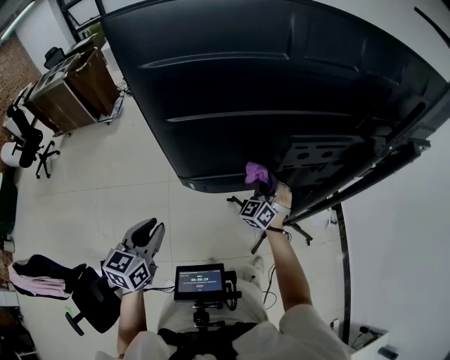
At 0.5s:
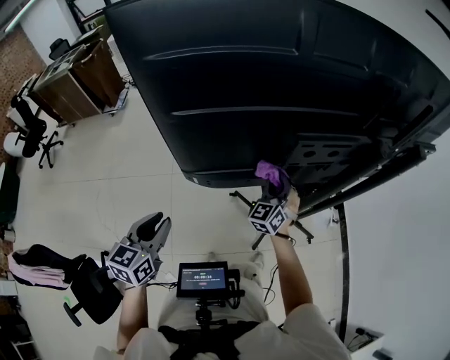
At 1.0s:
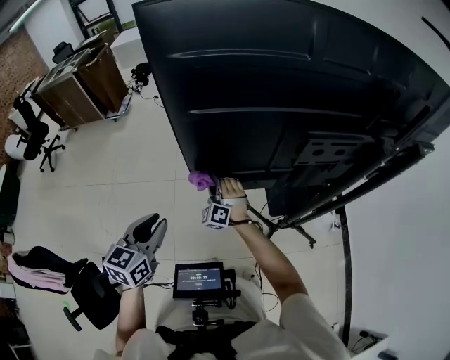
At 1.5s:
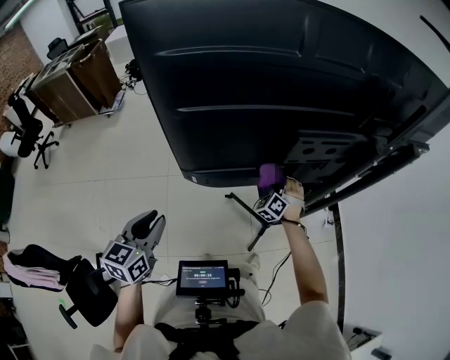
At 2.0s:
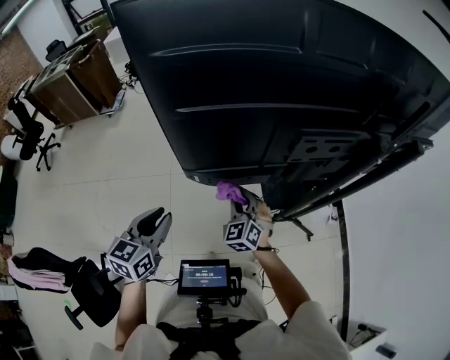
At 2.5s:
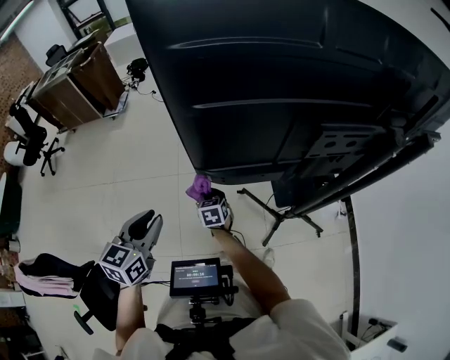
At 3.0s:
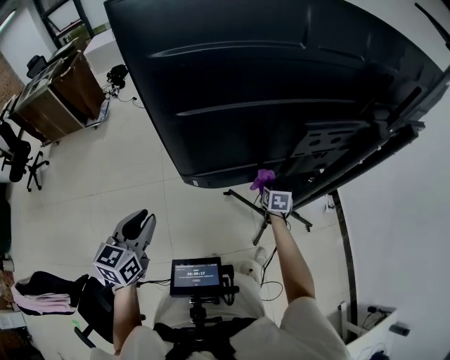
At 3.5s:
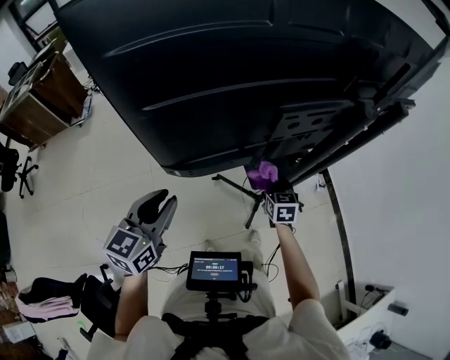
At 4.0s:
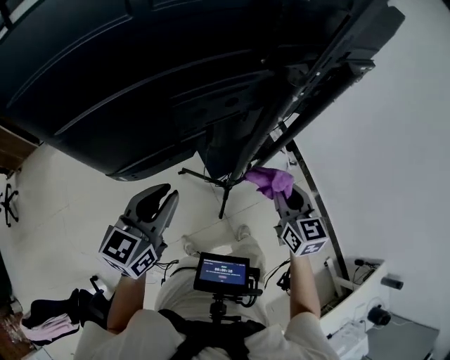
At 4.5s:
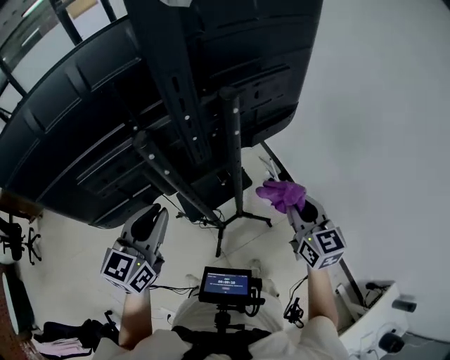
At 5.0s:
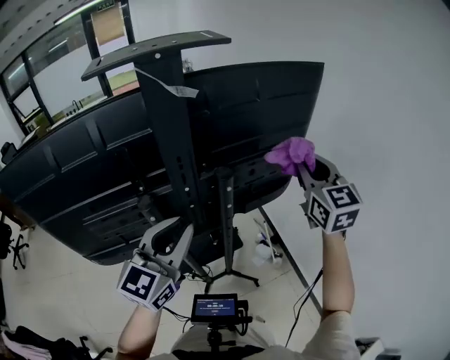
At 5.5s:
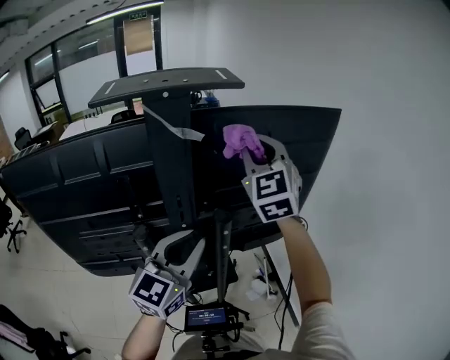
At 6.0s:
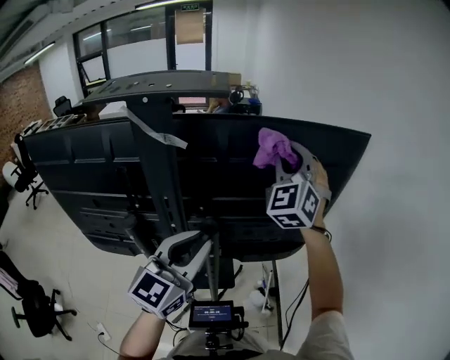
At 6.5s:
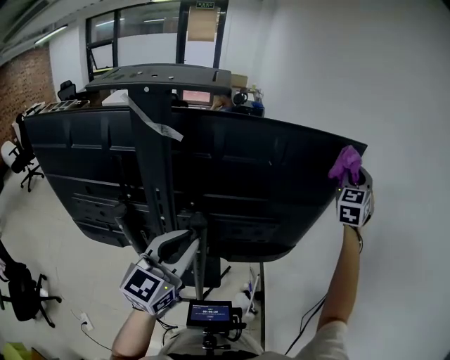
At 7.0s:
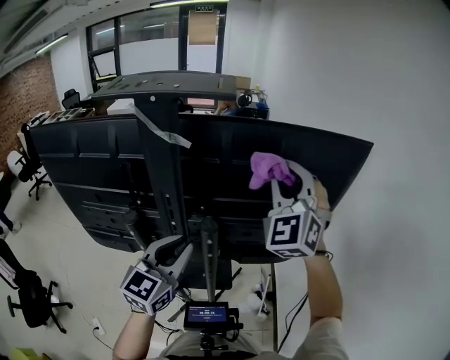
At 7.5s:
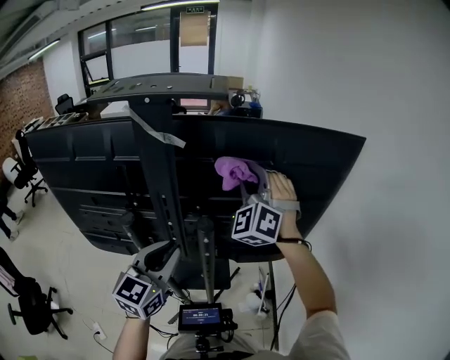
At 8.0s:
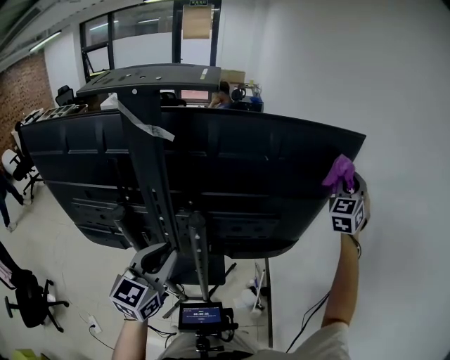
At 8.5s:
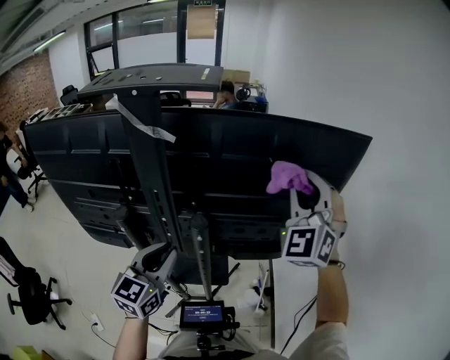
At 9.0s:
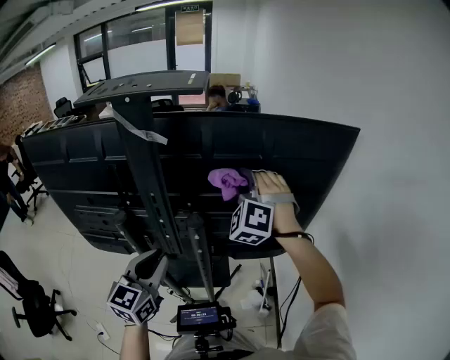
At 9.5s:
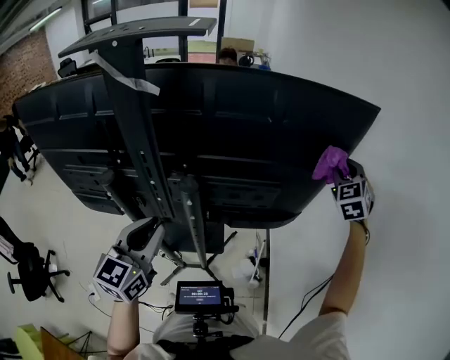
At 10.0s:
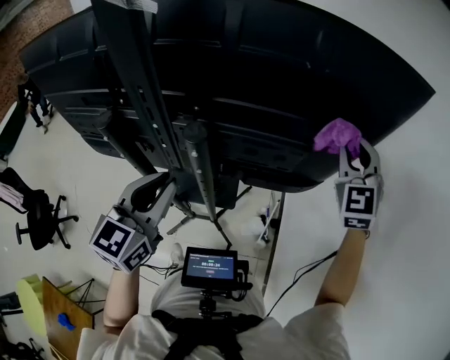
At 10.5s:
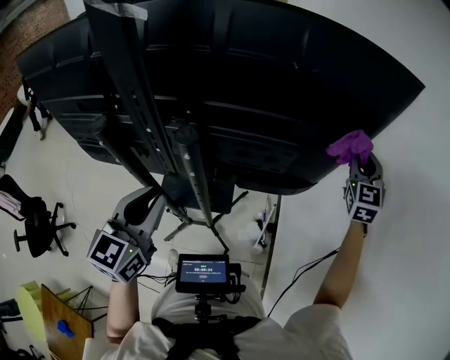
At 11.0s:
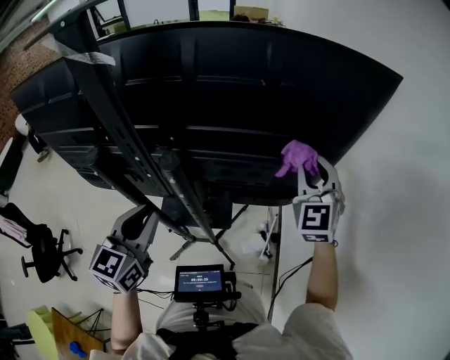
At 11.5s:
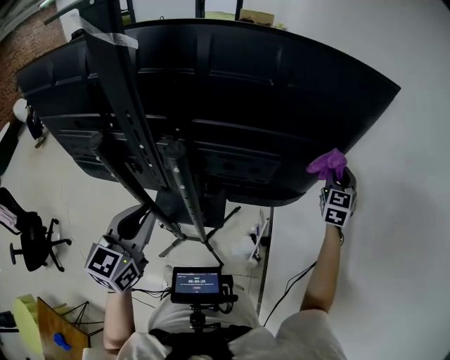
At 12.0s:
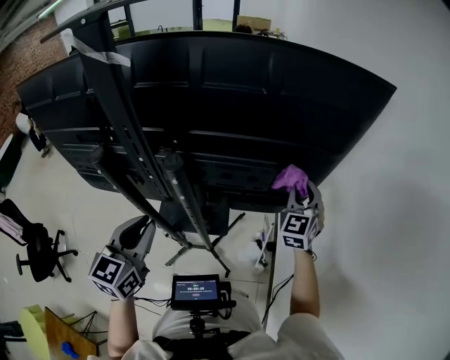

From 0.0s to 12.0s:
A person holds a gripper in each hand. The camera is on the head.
From 0.0s to 2.0s: The right gripper moves left and right over roughly 30 cm, changing direction 2 times, and turns by some 20 degrees.
From 2.0s to 4.0s: The right gripper goes downward and returns, some 15 cm each way, and rotates around the line of its fingers by some 40 degrees, clockwise from behind; the left gripper changes place by roughly 30 cm, and turns by approximately 30 degrees.
From 4.0s to 6.0s: Both grippers are carried to the right and forward, some 70 cm. The left gripper rotates some 30 degrees. Meanwhile the right gripper shifts approximately 40 cm upward, and twists some 60 degrees counterclockwise, seen from behind.
From 6.0s to 8.0s: The left gripper travels downward by approximately 10 cm. The right gripper moves left and right over roughly 35 cm, changing direction 2 times.
From 8.0s to 10.0s: The right gripper swings left and right, some 30 cm each way, with 2 reversals, and rotates about 30 degrees; the left gripper changes place by roughly 5 cm.
From 10.0s to 12.0s: The right gripper swings left and right, about 15 cm each way, with 3 reversals.

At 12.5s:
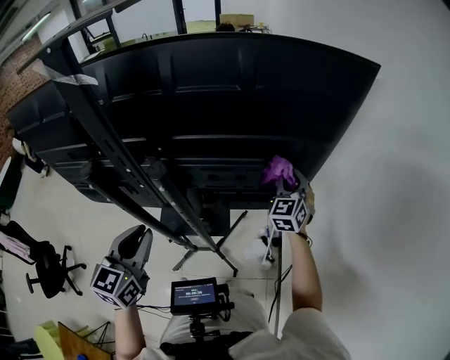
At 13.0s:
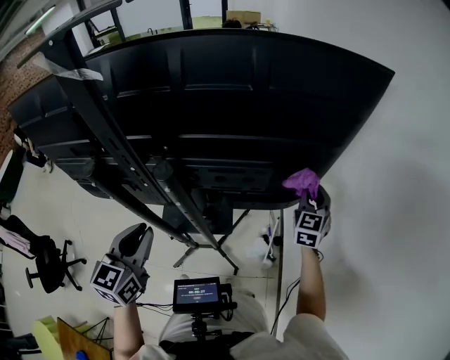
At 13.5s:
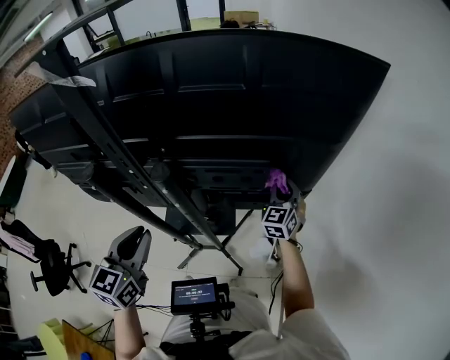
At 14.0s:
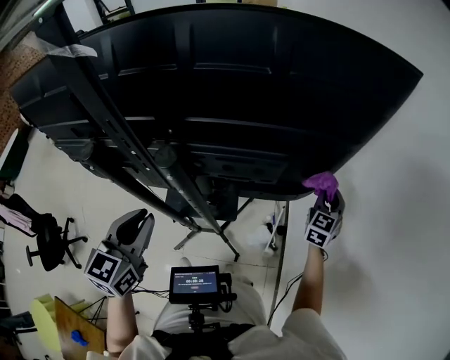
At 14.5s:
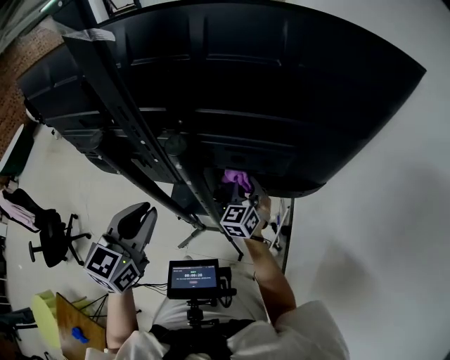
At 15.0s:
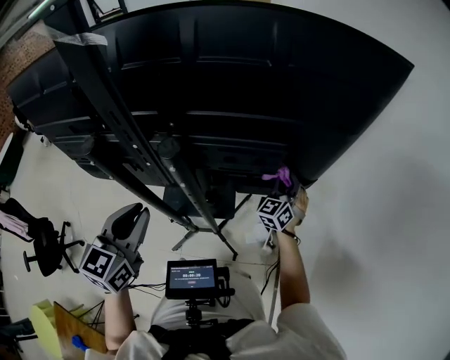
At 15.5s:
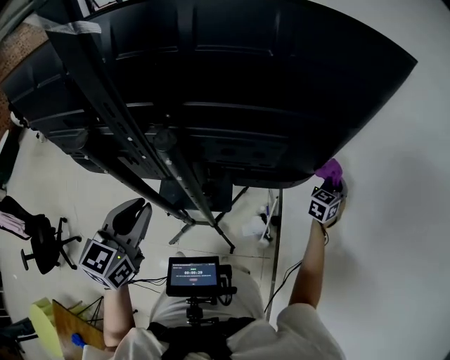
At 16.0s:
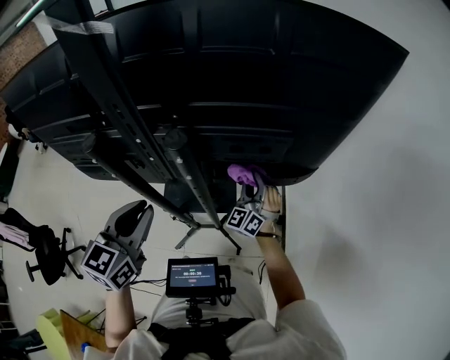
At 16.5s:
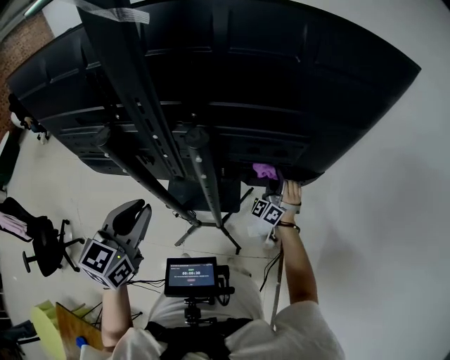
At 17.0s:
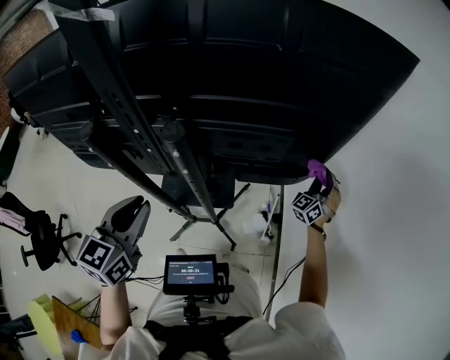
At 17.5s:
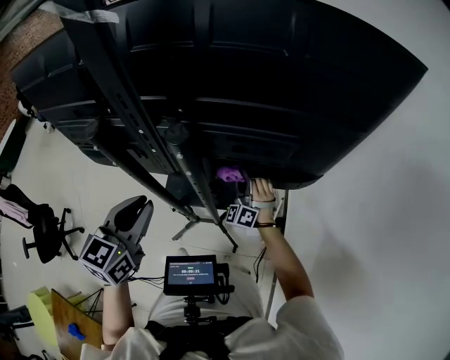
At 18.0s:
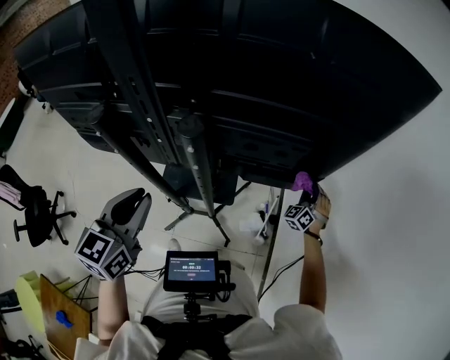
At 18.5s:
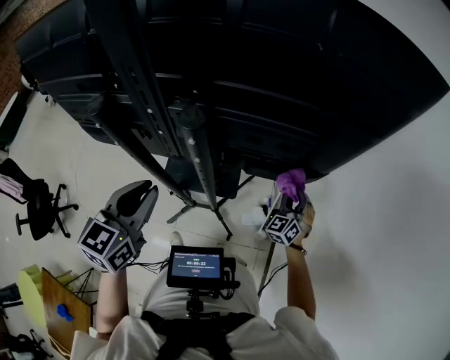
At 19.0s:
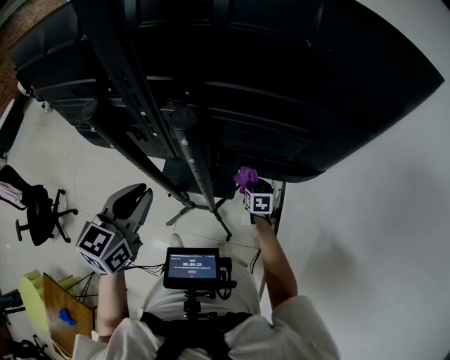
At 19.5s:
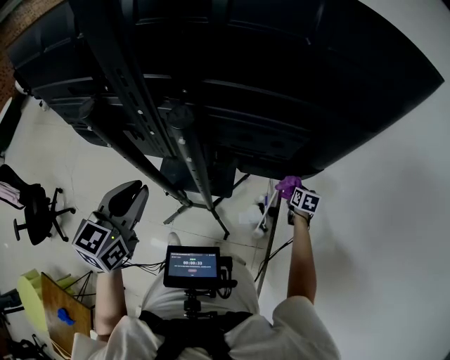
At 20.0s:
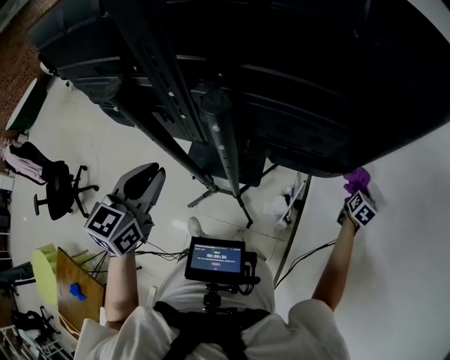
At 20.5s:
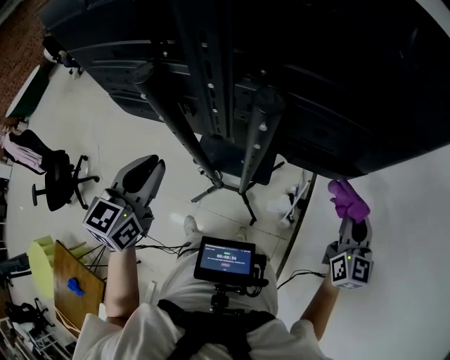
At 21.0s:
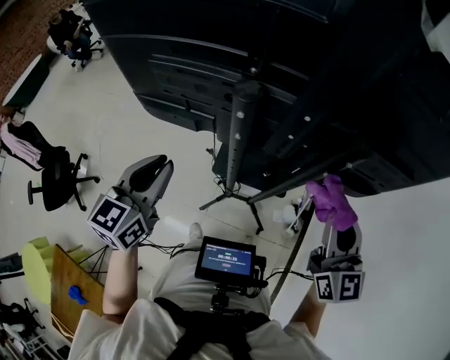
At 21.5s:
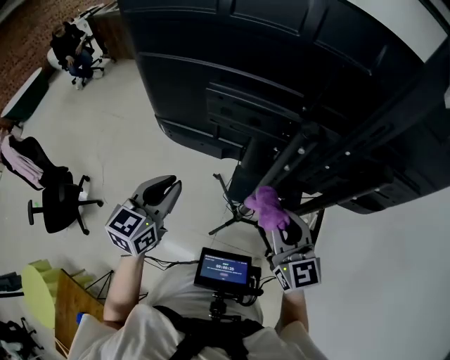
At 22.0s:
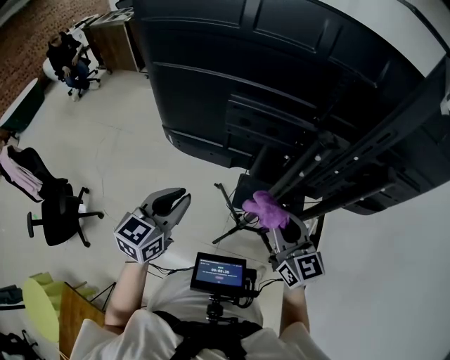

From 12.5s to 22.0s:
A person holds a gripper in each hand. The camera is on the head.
From 12.5s to 14.5s: The right gripper goes left and right, some 30 cm each way, reversing 3 times.
From 14.5s to 16.5s: The left gripper is displaced to the left by roughly 5 cm. The right gripper travels to the right and back again, approximately 35 cm each way, and rotates roughly 40 degrees.
From 16.5s to 18.0s: The right gripper swings left and right, some 30 cm each way, with 2 reversals.
From 18.0s to 20.0s: The right gripper heads to the right, covering some 10 cm, and rolls clockwise, seen from behind, by approximately 70 degrees.
From 20.0s to 22.0s: The pair of grippers is taken to the left, approximately 70 cm. The right gripper rotates some 60 degrees.

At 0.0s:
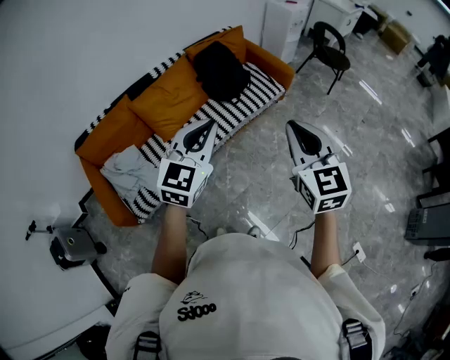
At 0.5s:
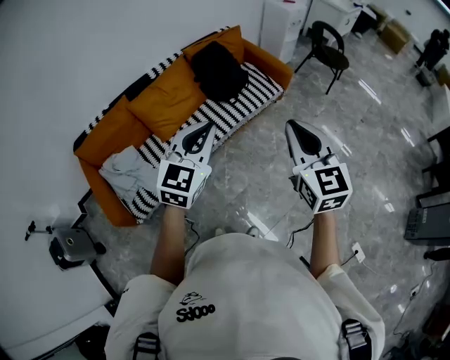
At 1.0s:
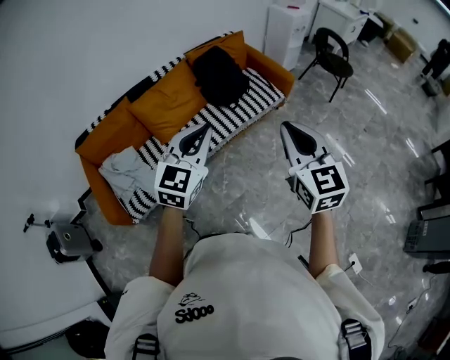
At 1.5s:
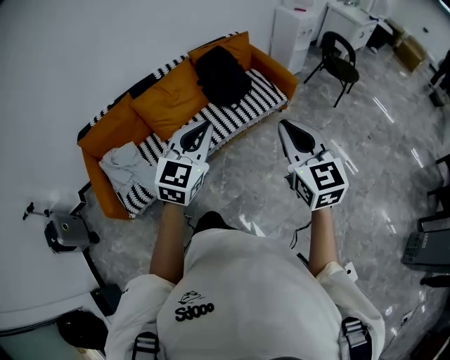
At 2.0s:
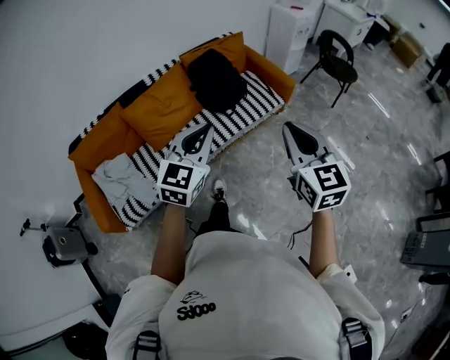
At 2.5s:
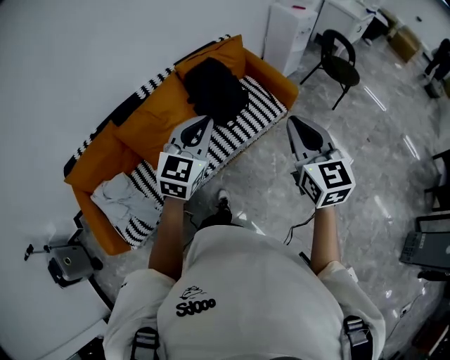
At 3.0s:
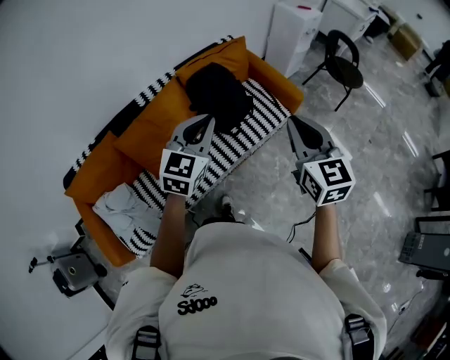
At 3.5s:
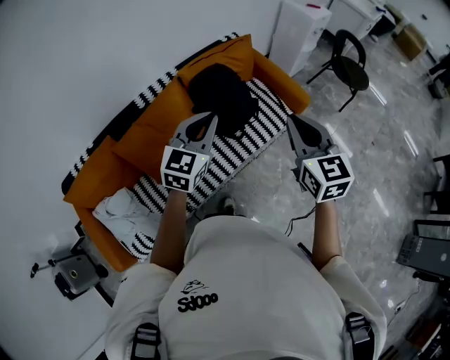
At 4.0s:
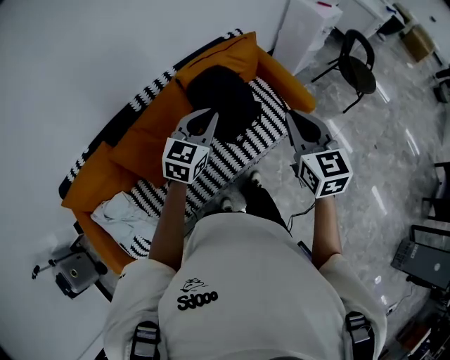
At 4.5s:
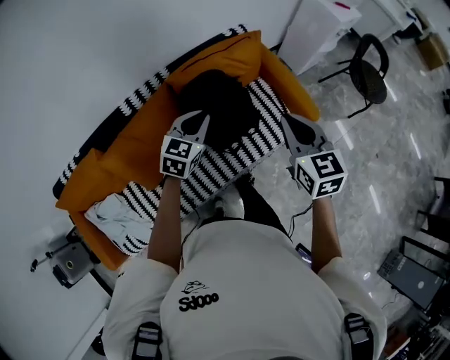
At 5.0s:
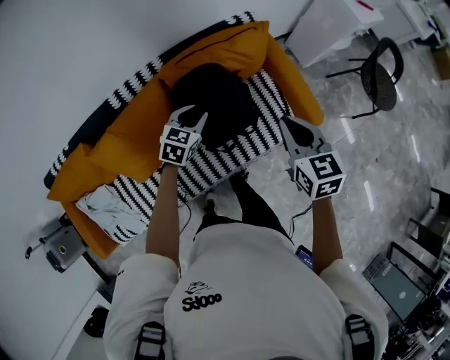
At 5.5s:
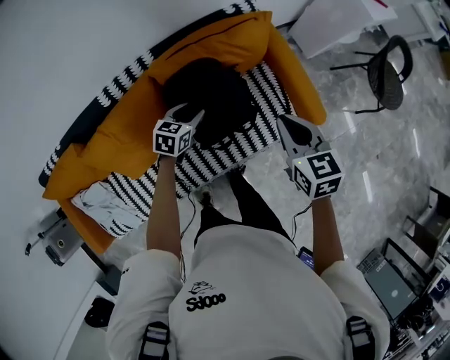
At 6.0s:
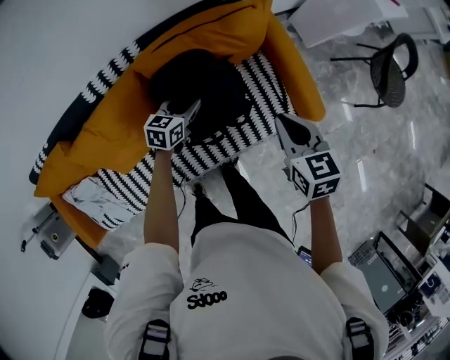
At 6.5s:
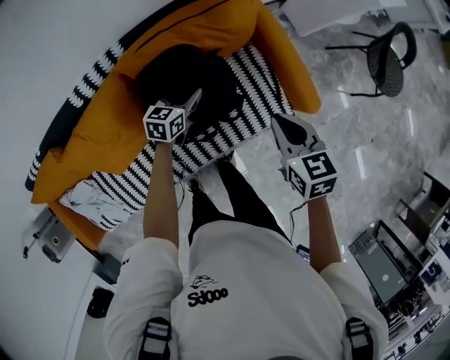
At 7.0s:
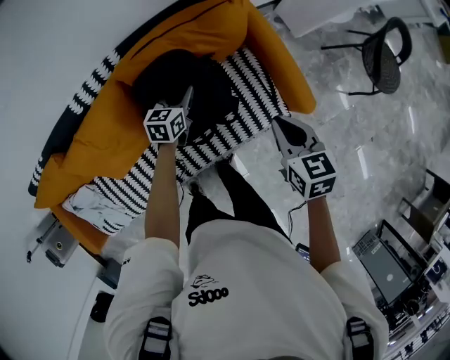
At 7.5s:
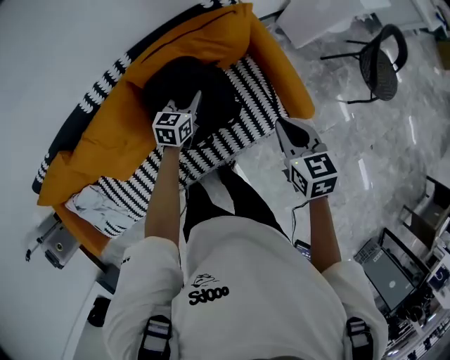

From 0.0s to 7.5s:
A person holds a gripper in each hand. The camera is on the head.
From 0.0s to 2.0s: Both grippers travel together forward and to the right, roughly 15 cm.
From 2.0s to 4.0s: The pair of grippers is taken forward, about 50 cm.
From 4.0s to 5.5s: The left gripper shifts approximately 40 cm downward and forward, changes its angle by about 30 degrees, and opens its fingers. The right gripper shifts roughly 35 cm forward and downward, and rotates roughly 20 degrees.
From 5.5s to 7.5s: The right gripper goes approximately 5 cm to the right. The left gripper shifts approximately 10 cm to the right and forward, and closes up.
